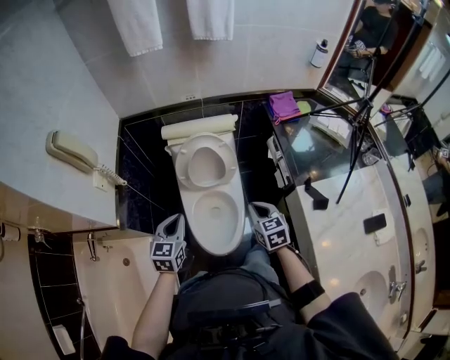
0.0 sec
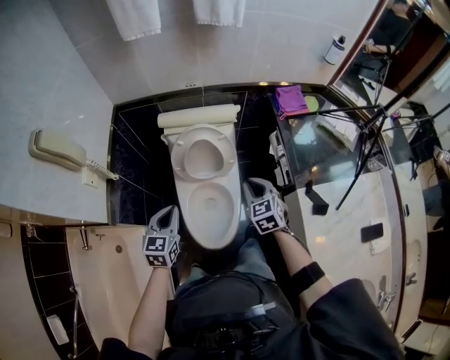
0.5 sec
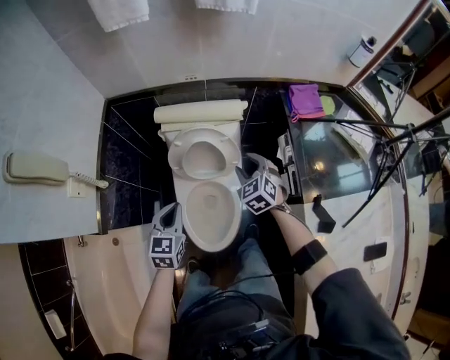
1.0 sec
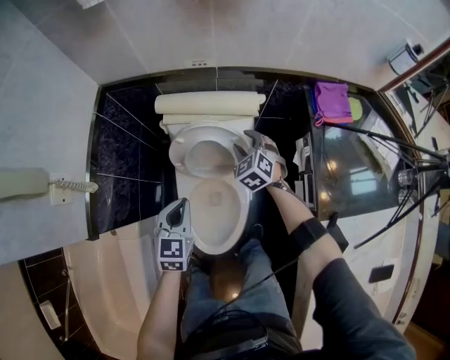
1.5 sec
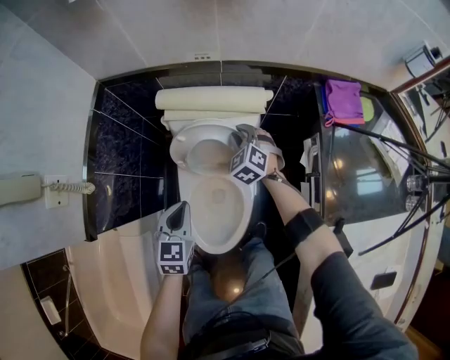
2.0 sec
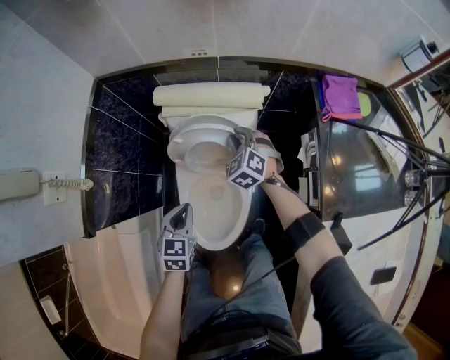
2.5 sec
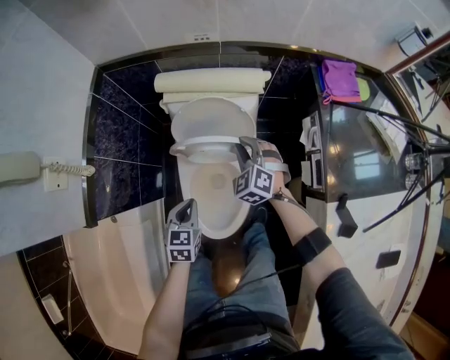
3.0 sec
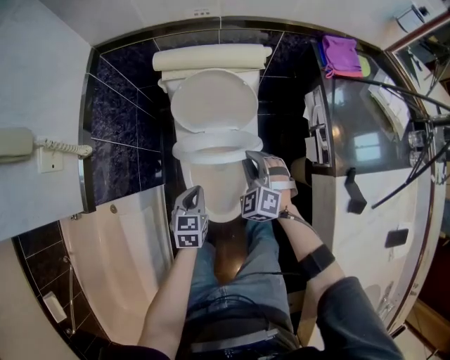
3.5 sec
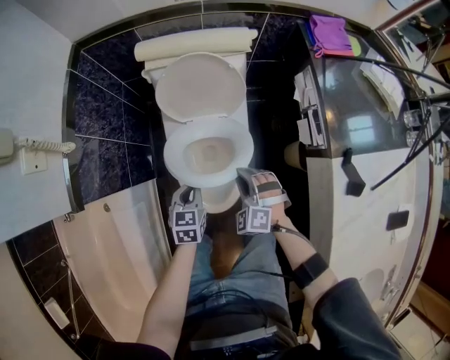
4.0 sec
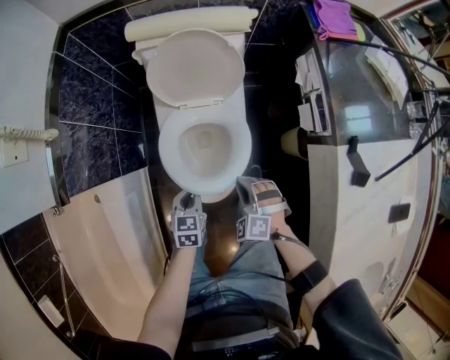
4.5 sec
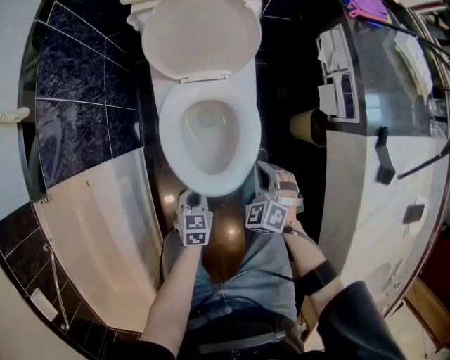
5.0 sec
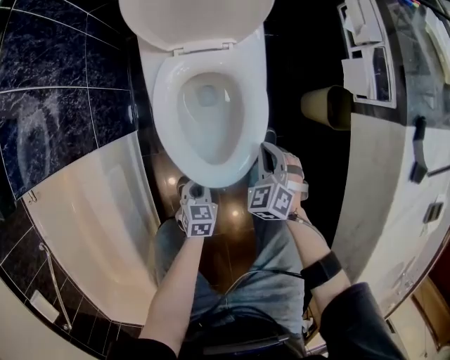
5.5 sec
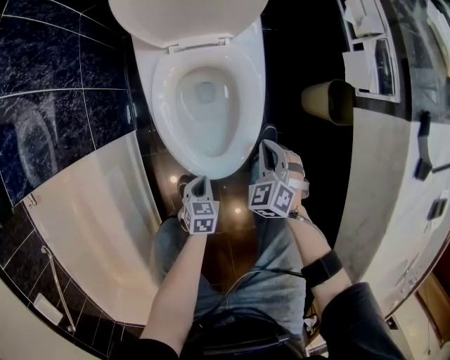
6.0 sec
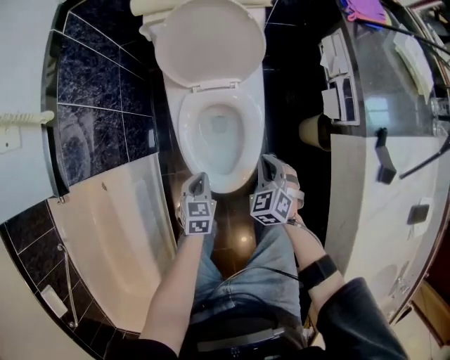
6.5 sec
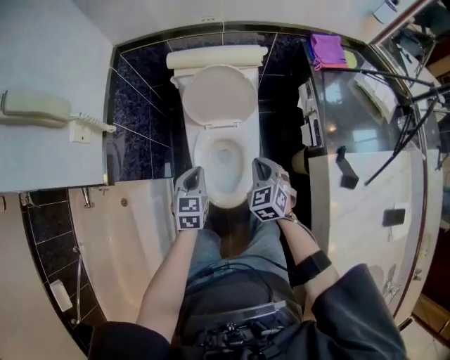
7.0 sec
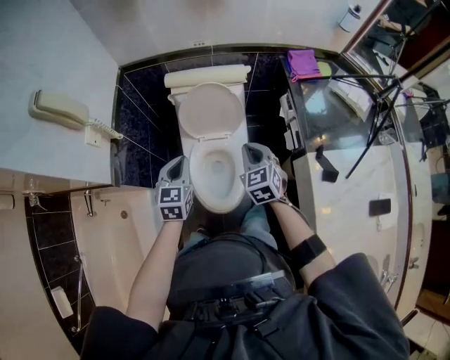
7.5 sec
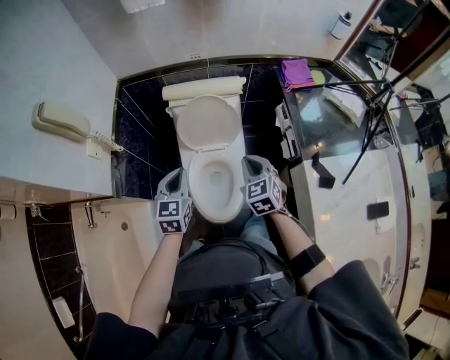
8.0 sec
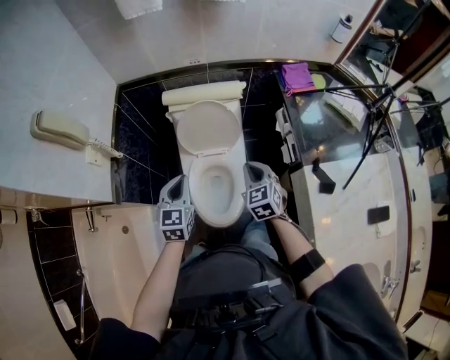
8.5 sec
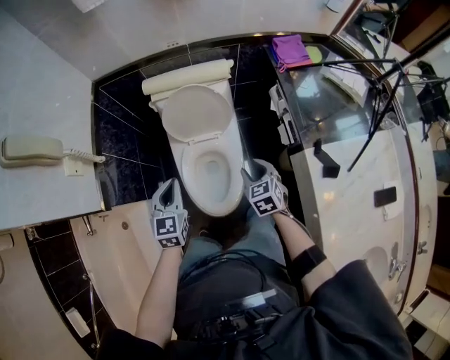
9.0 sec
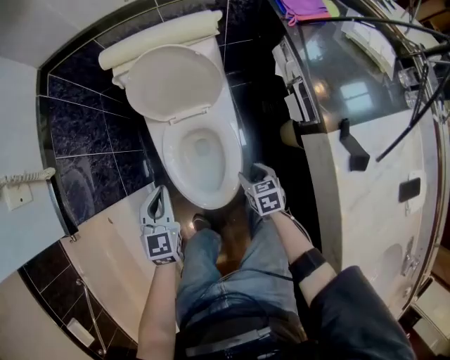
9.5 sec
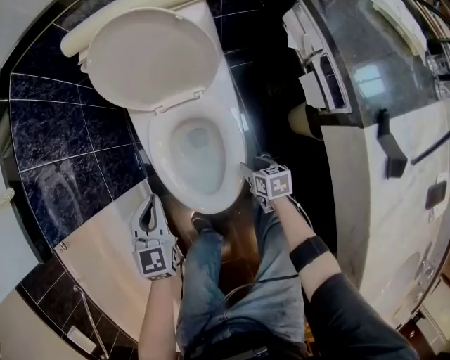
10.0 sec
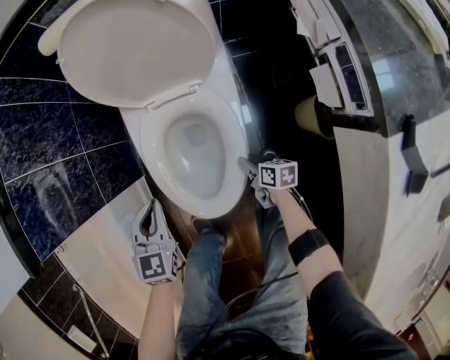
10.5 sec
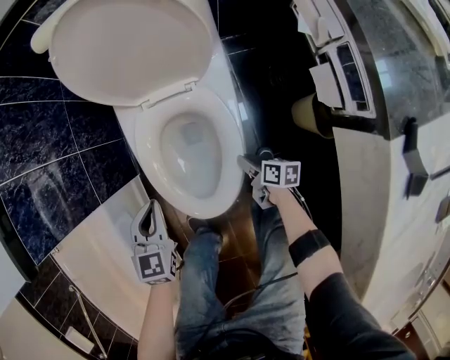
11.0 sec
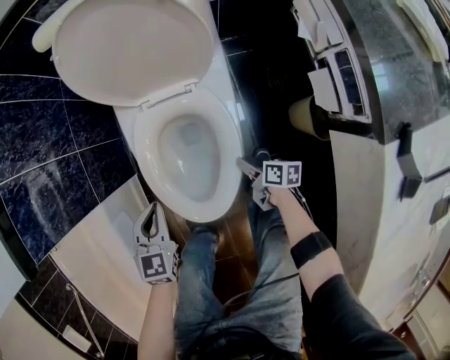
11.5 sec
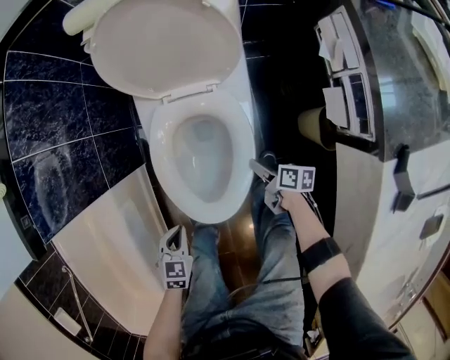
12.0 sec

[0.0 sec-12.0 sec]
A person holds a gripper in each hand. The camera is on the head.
0.0 sec to 2.0 sec: The left gripper is displaced forward and downward by roughly 20 cm. The right gripper moves forward, approximately 40 cm, twists about 40 degrees counterclockwise, seen from behind, and opens.
2.0 sec to 4.0 sec: The left gripper goes some 20 cm downward and backward; the right gripper travels backward by some 35 cm.
4.0 sec to 6.0 sec: The right gripper heads downward, covering about 20 cm, and changes its angle by roughly 30 degrees. The left gripper heads downward and backward, covering approximately 35 cm, and rotates roughly 20 degrees.
6.0 sec to 8.0 sec: The two grippers go roughly 50 cm upward. The left gripper angles its fingers upward, by approximately 40 degrees, while the right gripper turns by approximately 30 degrees.
8.0 sec to 10.0 sec: The left gripper shifts some 30 cm downward. Meanwhile the right gripper is displaced downward by some 50 cm, rotates around the line of its fingers by some 50 degrees, clockwise from behind, and opens.
10.0 sec to 12.0 sec: The left gripper moves backward and downward, about 20 cm, and changes its angle by roughly 30 degrees; the right gripper swivels approximately 30 degrees, and closes.

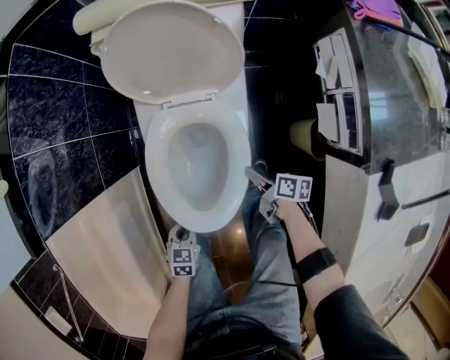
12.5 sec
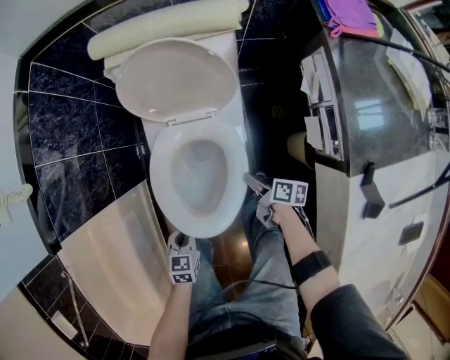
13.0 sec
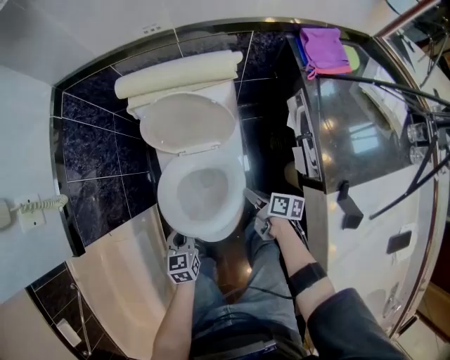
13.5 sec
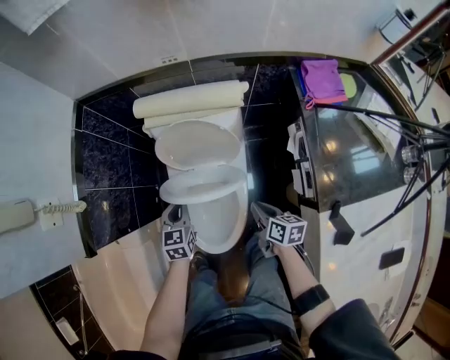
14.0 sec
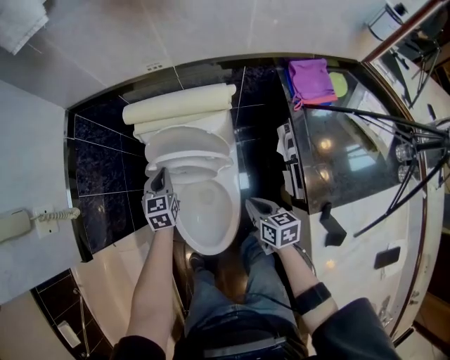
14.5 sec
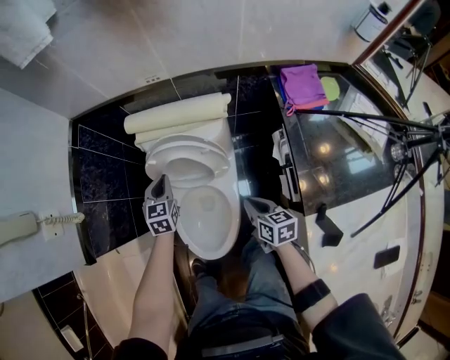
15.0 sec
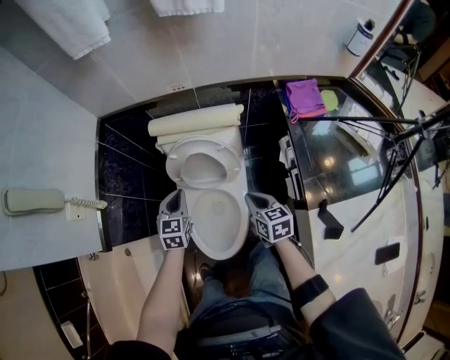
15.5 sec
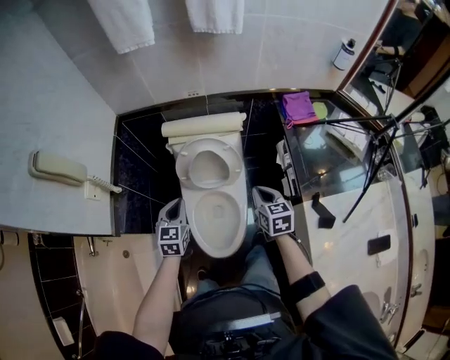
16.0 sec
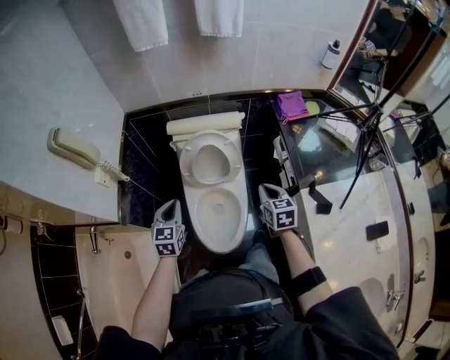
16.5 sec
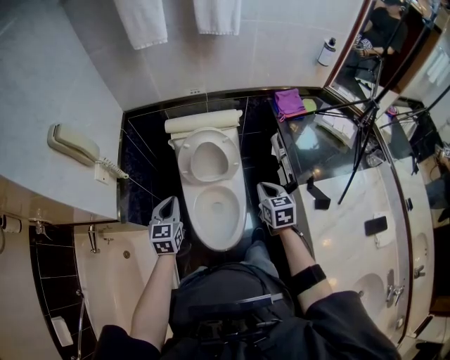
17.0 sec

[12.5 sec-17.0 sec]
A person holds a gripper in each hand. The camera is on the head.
12.5 sec to 14.5 sec: The right gripper moves upward and forward, roughly 30 cm, turns by some 40 degrees, and closes its fingers; the left gripper goes about 50 cm forward and upward, and rotates about 30 degrees.
14.5 sec to 17.0 sec: The left gripper heads backward, upward and to the left, covering some 30 cm. The right gripper heads upward and backward, covering approximately 20 cm, and rotates roughly 30 degrees.

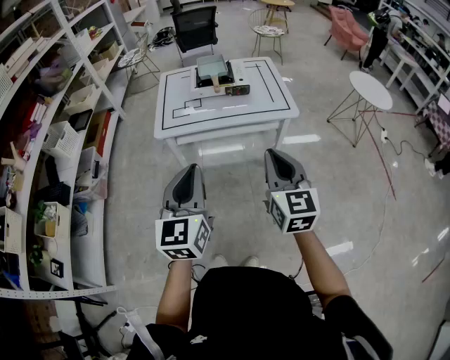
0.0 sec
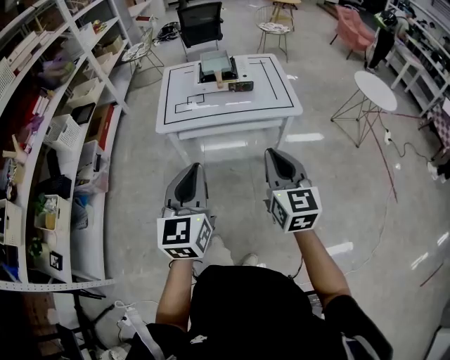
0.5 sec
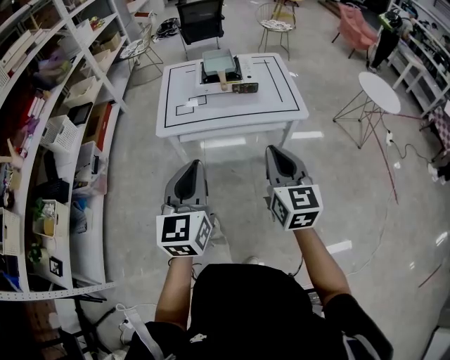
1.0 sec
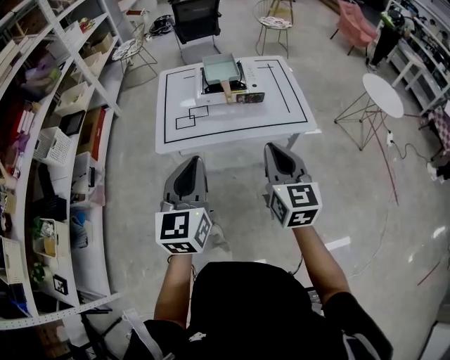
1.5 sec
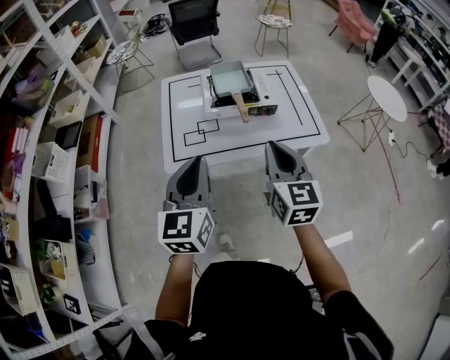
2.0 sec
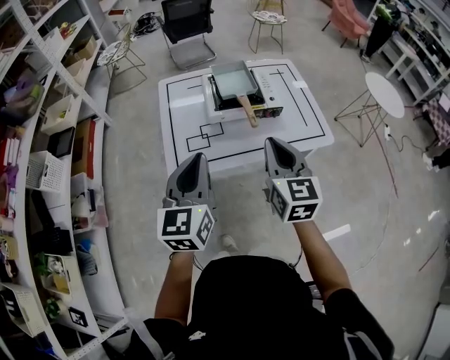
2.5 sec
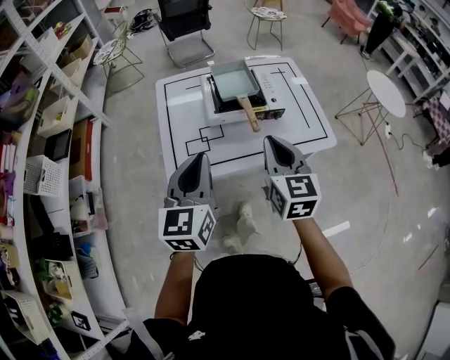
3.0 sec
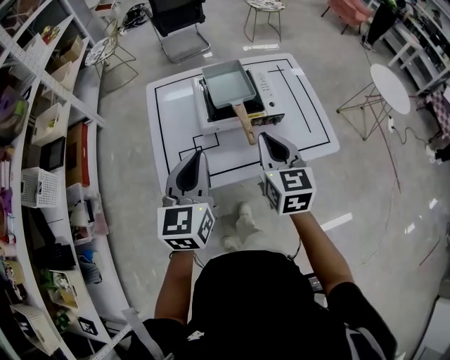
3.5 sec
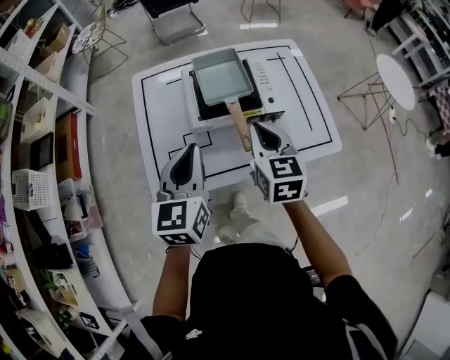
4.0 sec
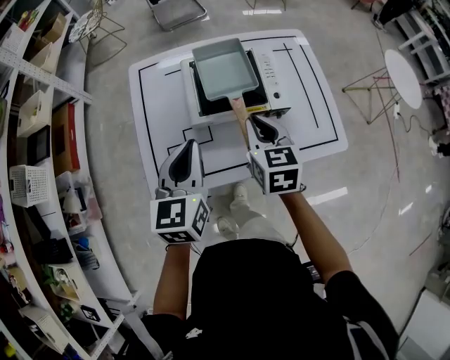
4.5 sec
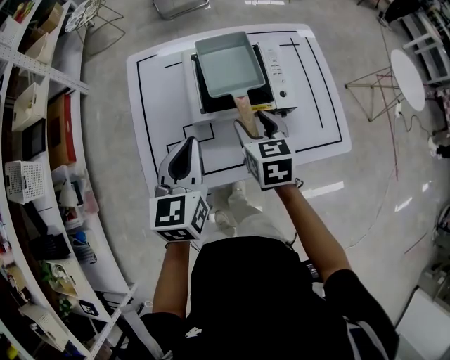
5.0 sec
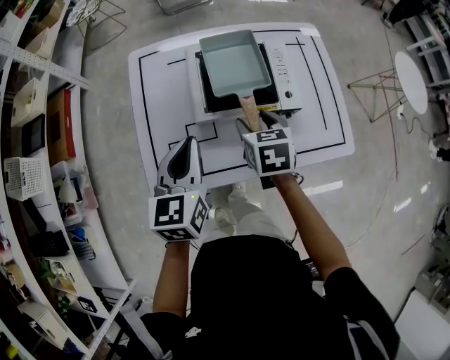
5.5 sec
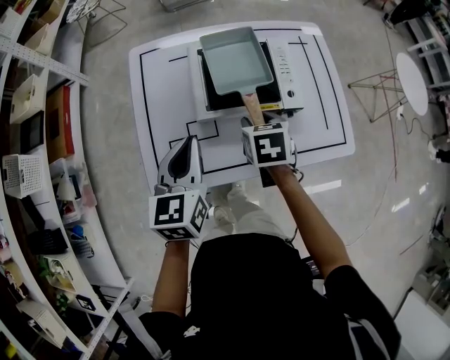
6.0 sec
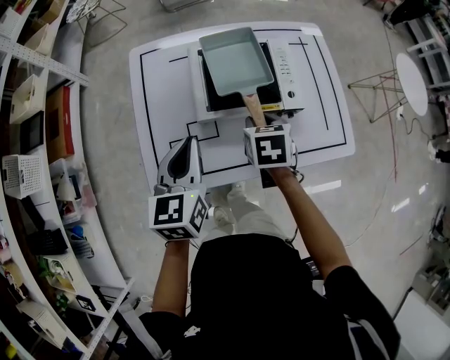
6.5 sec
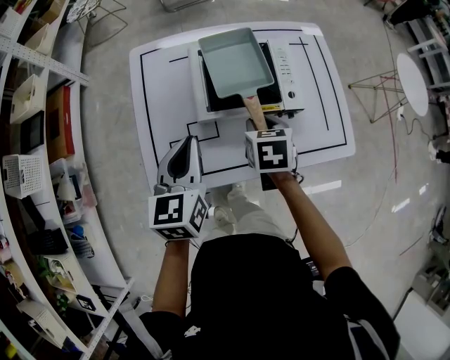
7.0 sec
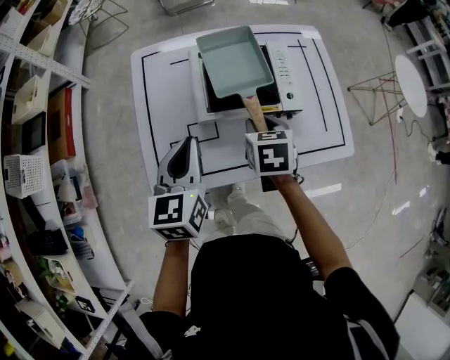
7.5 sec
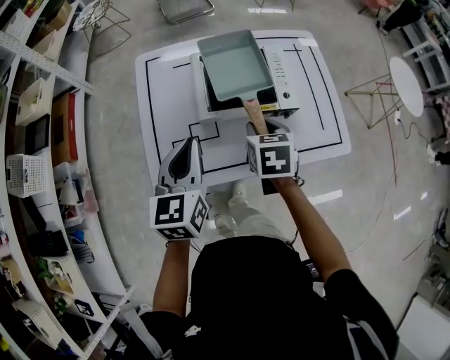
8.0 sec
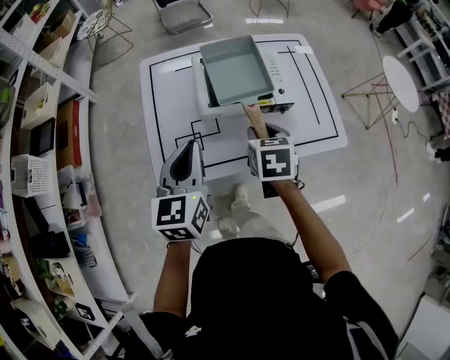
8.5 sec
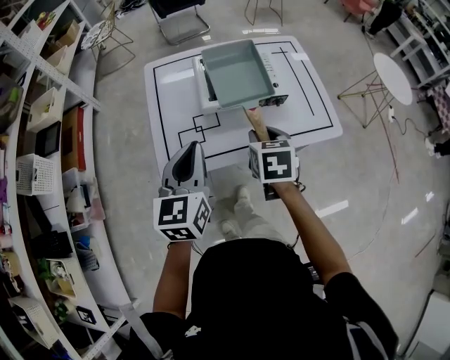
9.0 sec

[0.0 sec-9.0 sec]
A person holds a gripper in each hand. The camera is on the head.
0.0 sec to 2.0 sec: The right gripper shifts roughly 30 cm forward and to the left; the left gripper goes roughly 30 cm forward.
2.0 sec to 4.5 sec: The two grippers go roughly 30 cm forward and downward. The right gripper changes its angle by approximately 20 degrees.
4.5 sec to 7.0 sec: The right gripper is displaced downward by some 10 cm, turns by approximately 20 degrees, and opens. The left gripper ends up some 5 cm from where it was.
7.0 sec to 9.0 sec: Both grippers travel together backward and upward, about 15 cm.

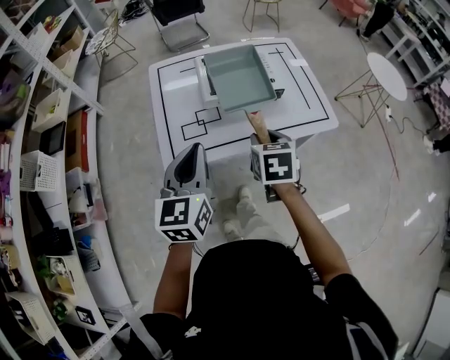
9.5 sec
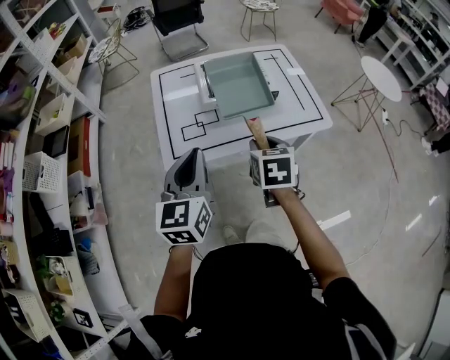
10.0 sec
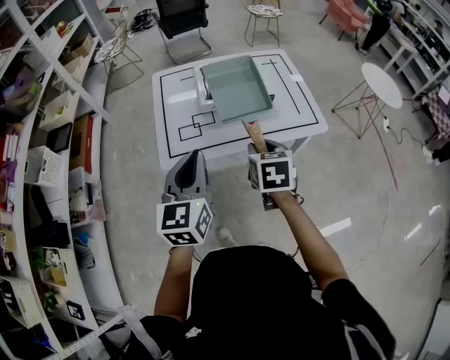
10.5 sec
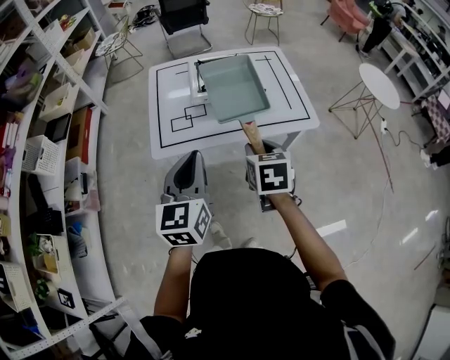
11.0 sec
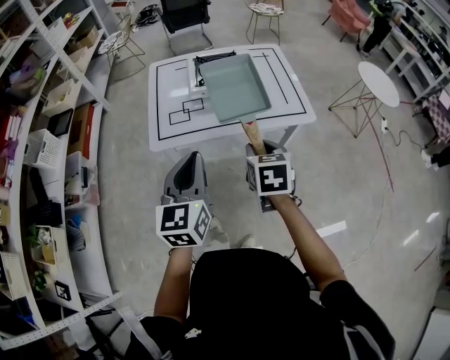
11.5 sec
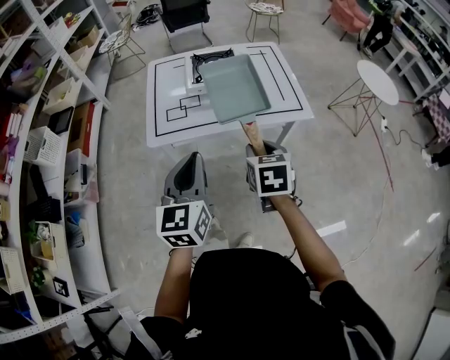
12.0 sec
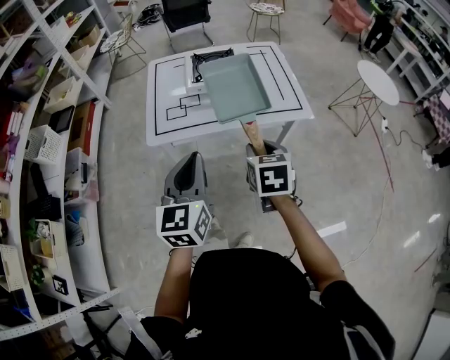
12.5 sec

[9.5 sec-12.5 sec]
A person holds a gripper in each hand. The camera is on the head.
9.5 sec to 11.0 sec: Both grippers move backward and to the right, roughly 10 cm.
11.0 sec to 12.5 sec: The two grippers go approximately 5 cm backward.
